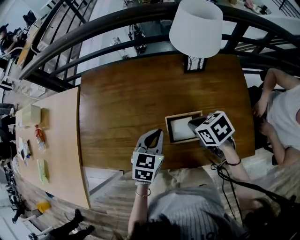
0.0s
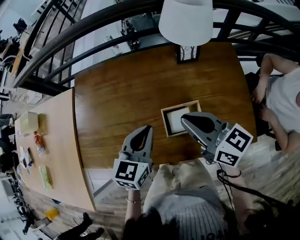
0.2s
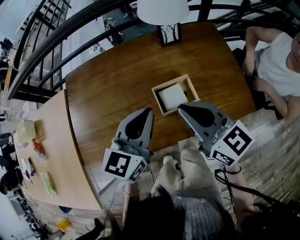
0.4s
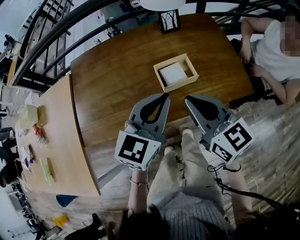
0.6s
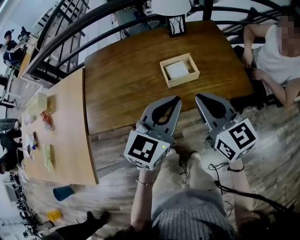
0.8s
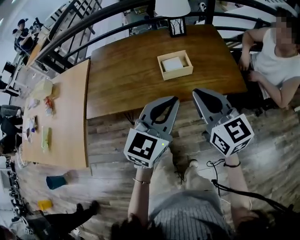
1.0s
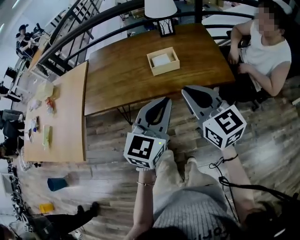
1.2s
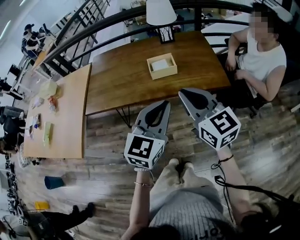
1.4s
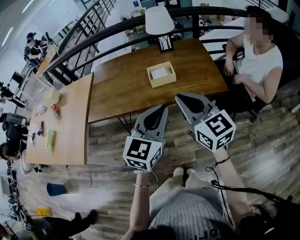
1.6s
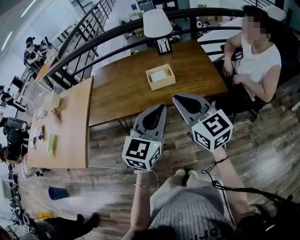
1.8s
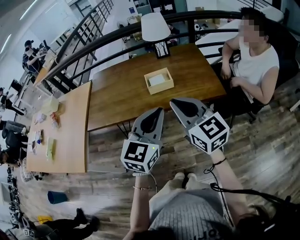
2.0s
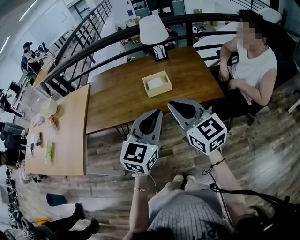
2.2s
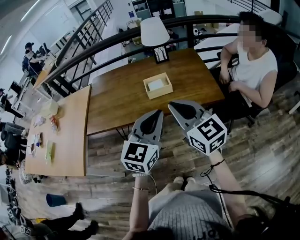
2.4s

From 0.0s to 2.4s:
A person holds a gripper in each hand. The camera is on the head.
From 0.0s to 1.2s: The right gripper moves approximately 40 cm, and points its fingers about 50 degrees further upward; the left gripper shifts by about 40 cm, and rotates some 30 degrees.
From 1.2s to 2.4s: The grippers make only small movements.

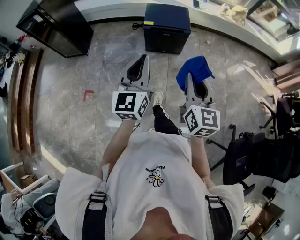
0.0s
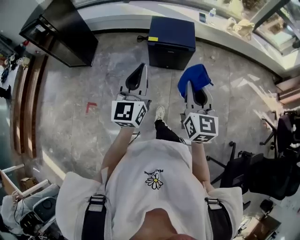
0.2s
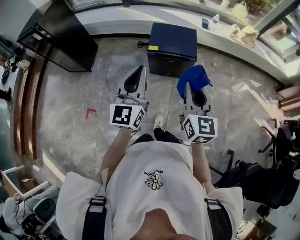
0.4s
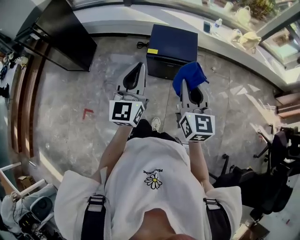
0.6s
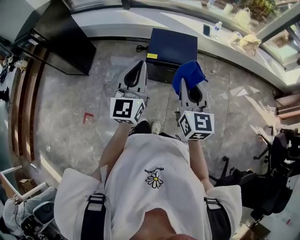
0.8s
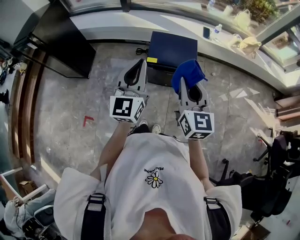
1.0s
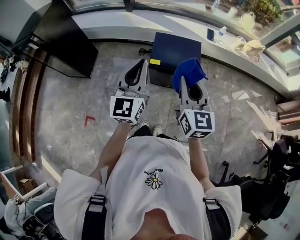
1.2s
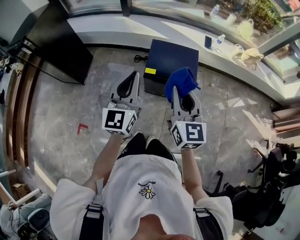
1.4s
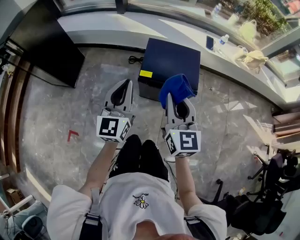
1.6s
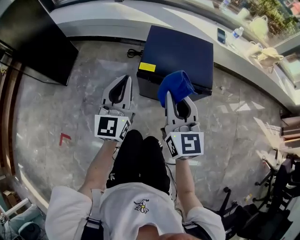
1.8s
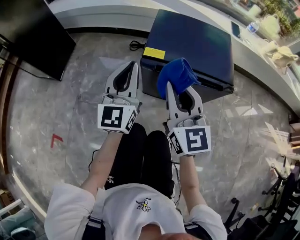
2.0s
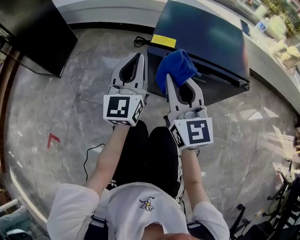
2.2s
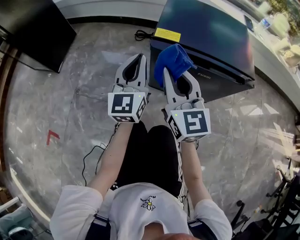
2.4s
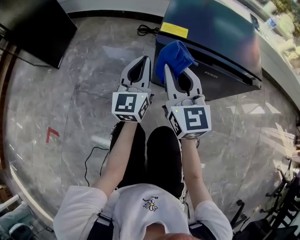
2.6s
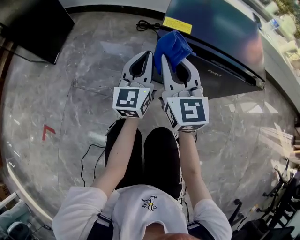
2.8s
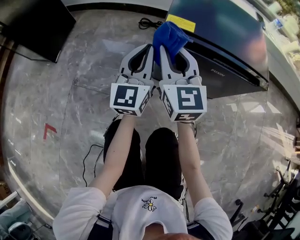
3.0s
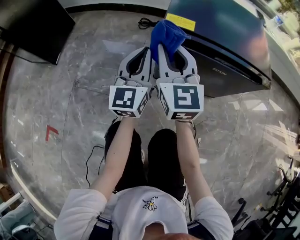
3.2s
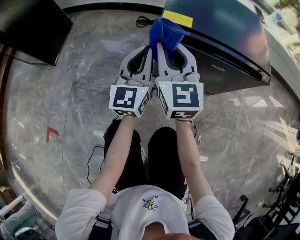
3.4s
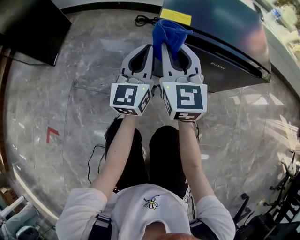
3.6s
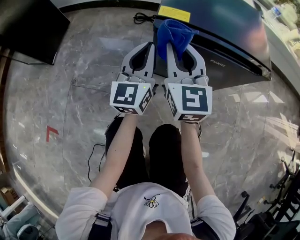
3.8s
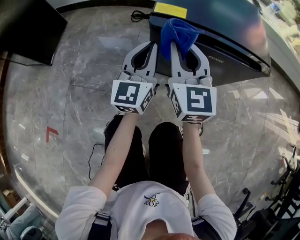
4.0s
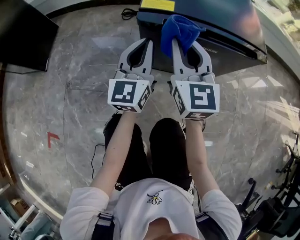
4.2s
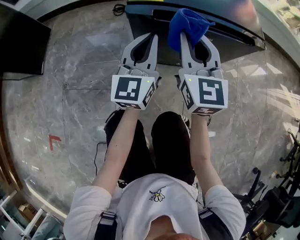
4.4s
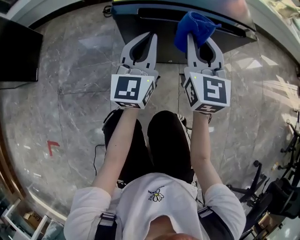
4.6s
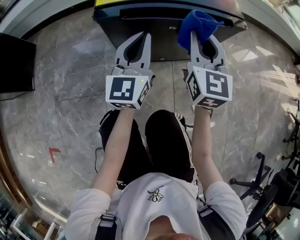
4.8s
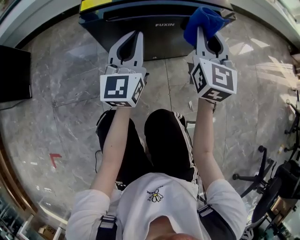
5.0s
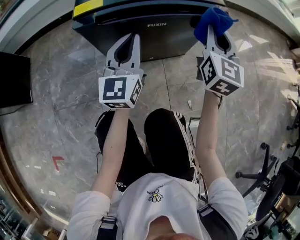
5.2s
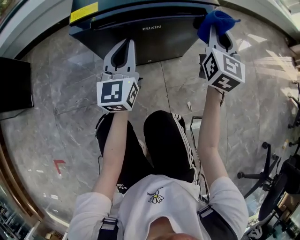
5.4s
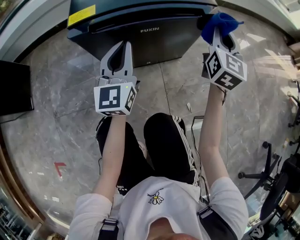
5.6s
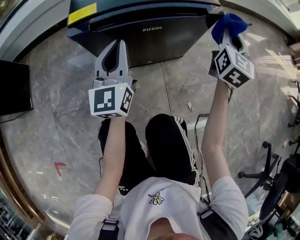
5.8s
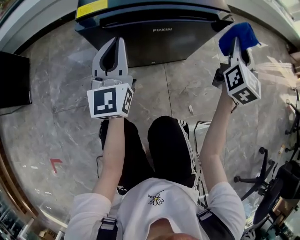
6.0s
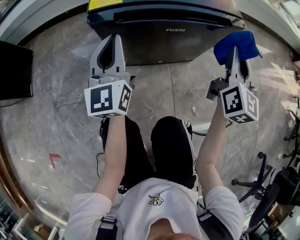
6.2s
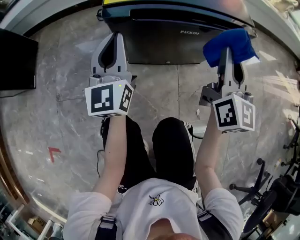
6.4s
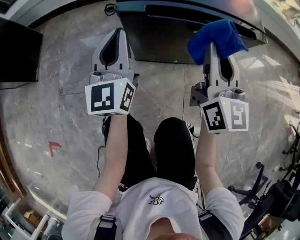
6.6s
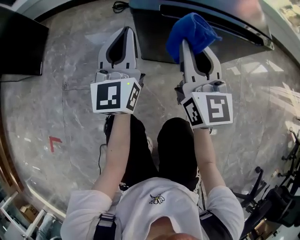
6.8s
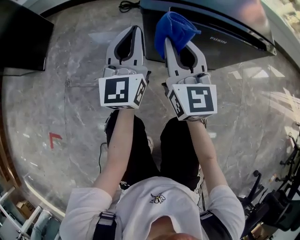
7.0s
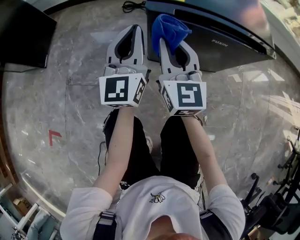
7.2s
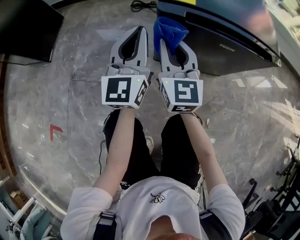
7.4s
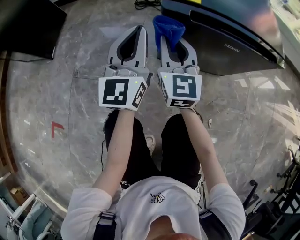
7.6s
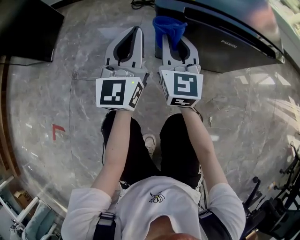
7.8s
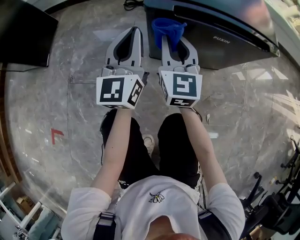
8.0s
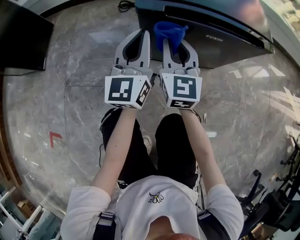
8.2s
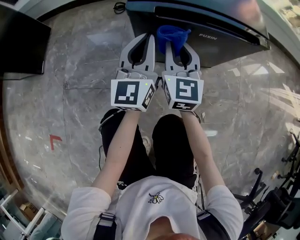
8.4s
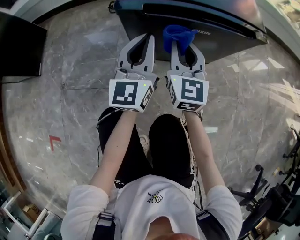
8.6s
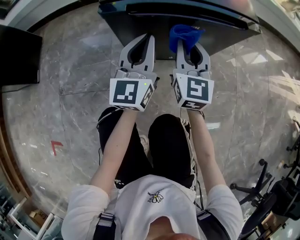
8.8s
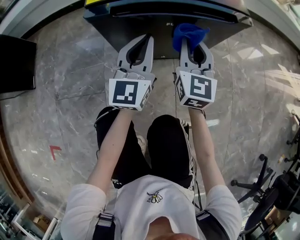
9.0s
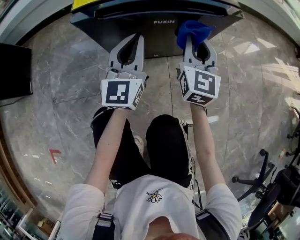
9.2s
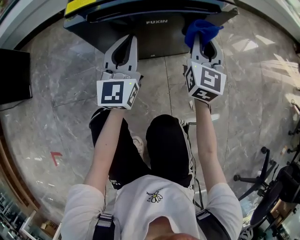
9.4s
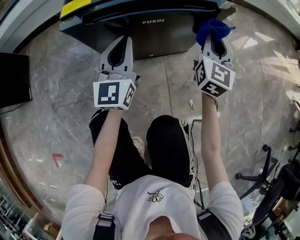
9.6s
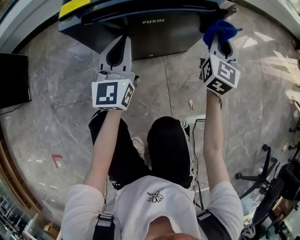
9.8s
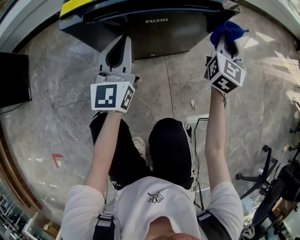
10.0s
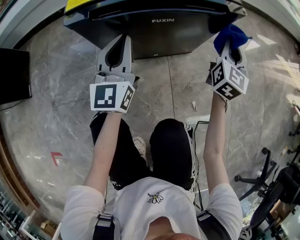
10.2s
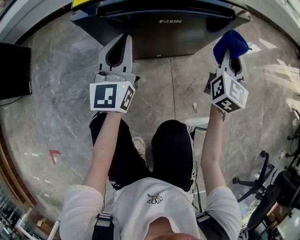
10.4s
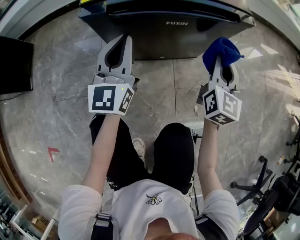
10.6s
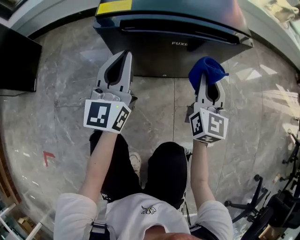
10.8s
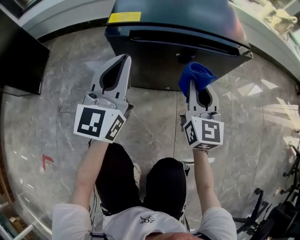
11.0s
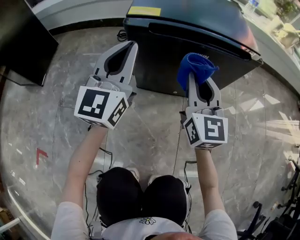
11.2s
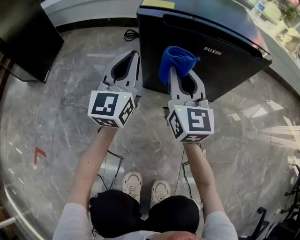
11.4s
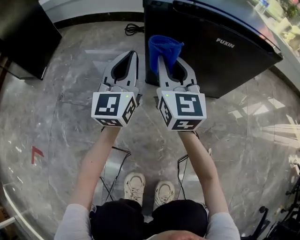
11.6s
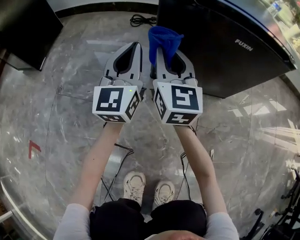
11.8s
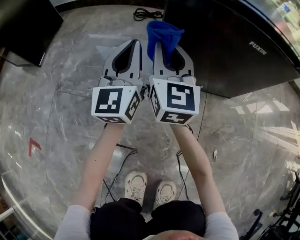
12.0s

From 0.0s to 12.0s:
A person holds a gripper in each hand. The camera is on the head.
From 0.0s to 1.6s: The left gripper heads forward and downward, covering roughly 40 cm. The right gripper shifts roughly 40 cm forward.
From 1.6s to 3.0s: The two grippers go approximately 40 cm downward.
From 3.0s to 4.4s: The two grippers go about 10 cm to the right.
From 4.4s to 6.0s: The right gripper moves to the right, some 30 cm, and swivels about 40 degrees.
From 6.0s to 7.6s: The right gripper shifts by some 40 cm, and rotates about 40 degrees, while the left gripper moves some 15 cm.
From 7.6s to 9.0s: The two grippers go some 20 cm to the right. The right gripper turns by about 20 degrees.
From 9.0s to 10.4s: The right gripper is displaced to the right by about 15 cm, and turns by some 20 degrees.
From 10.4s to 12.0s: The left gripper changes place by approximately 20 cm. Meanwhile the right gripper shifts by about 40 cm, and rotates some 40 degrees.

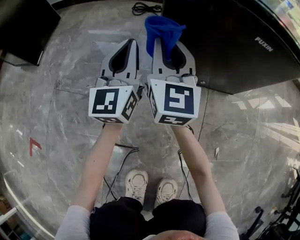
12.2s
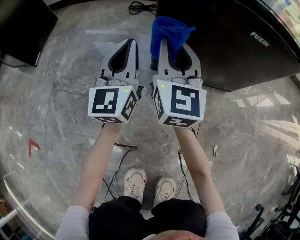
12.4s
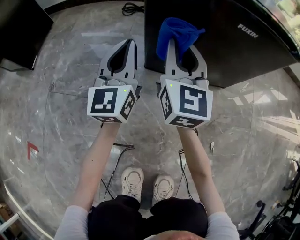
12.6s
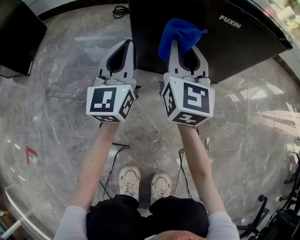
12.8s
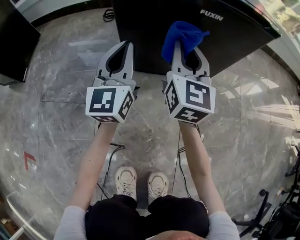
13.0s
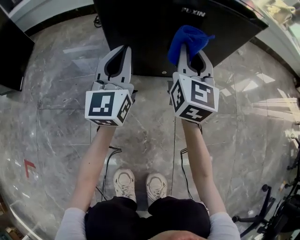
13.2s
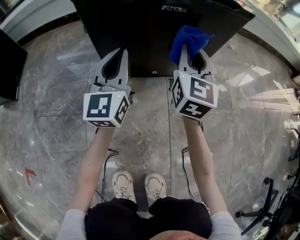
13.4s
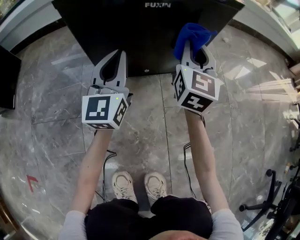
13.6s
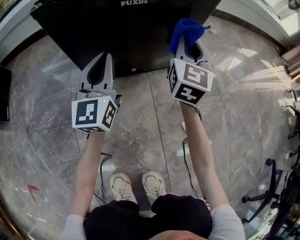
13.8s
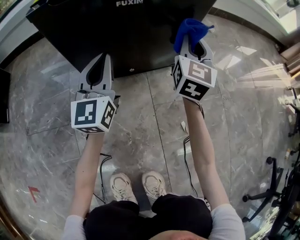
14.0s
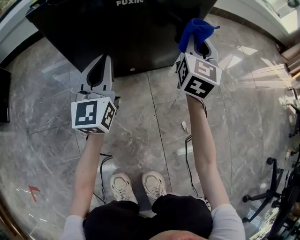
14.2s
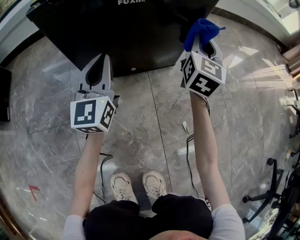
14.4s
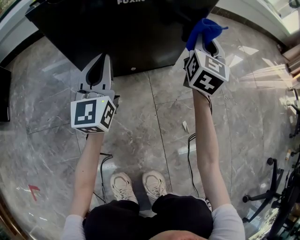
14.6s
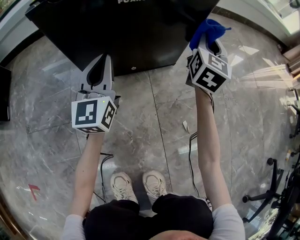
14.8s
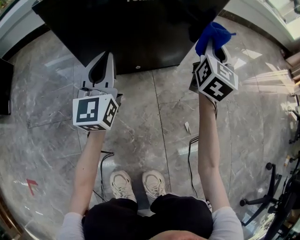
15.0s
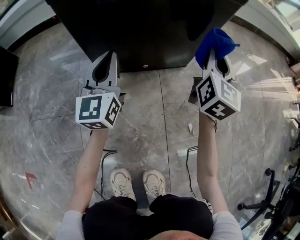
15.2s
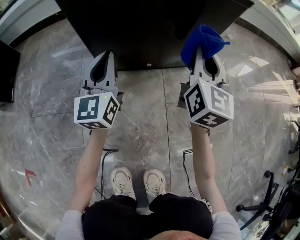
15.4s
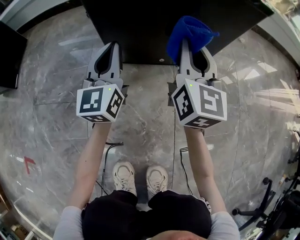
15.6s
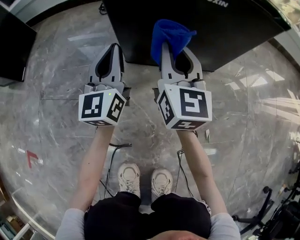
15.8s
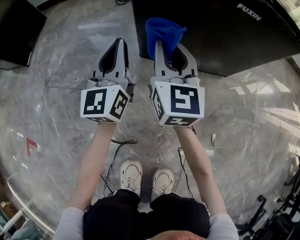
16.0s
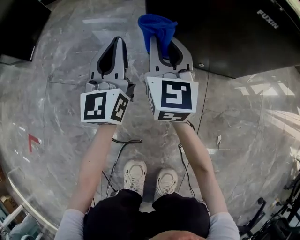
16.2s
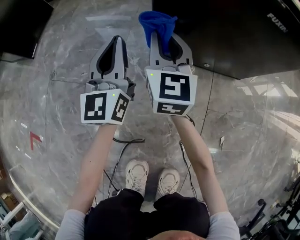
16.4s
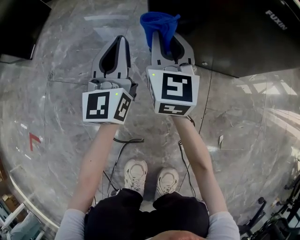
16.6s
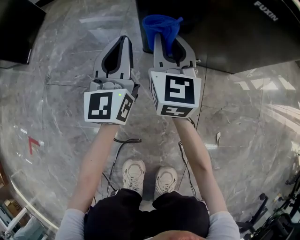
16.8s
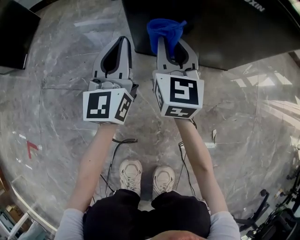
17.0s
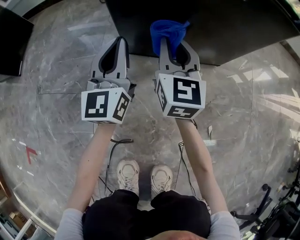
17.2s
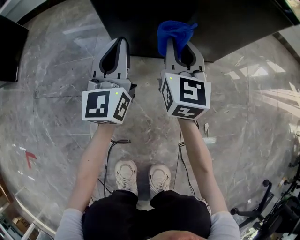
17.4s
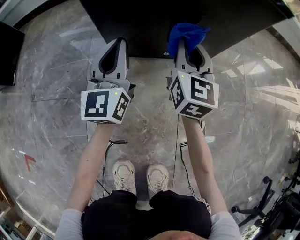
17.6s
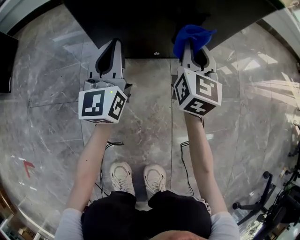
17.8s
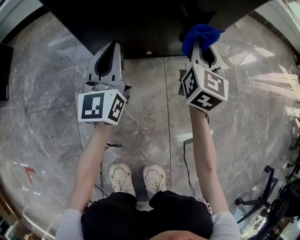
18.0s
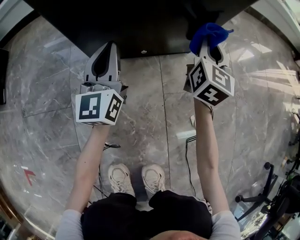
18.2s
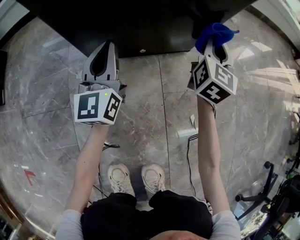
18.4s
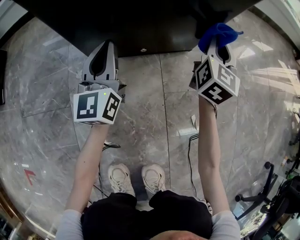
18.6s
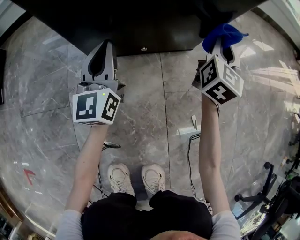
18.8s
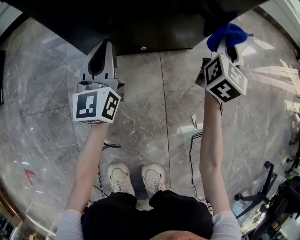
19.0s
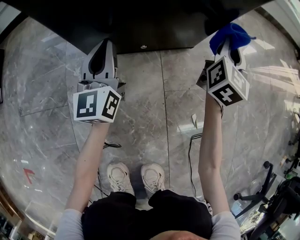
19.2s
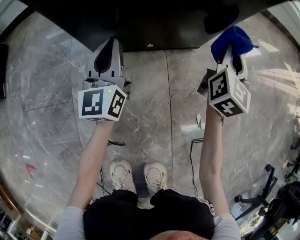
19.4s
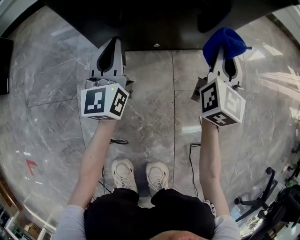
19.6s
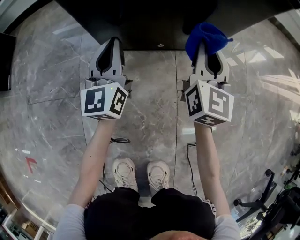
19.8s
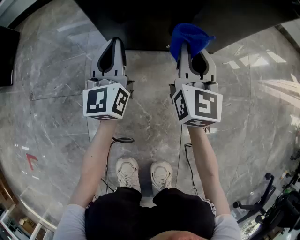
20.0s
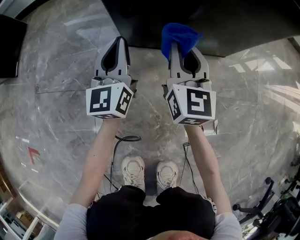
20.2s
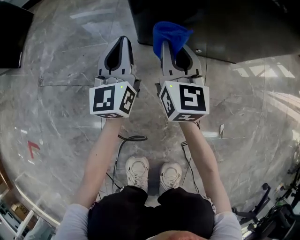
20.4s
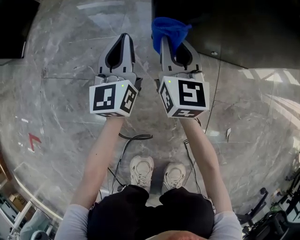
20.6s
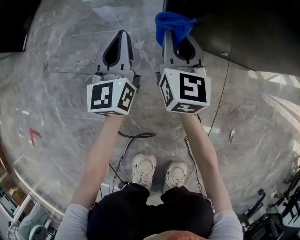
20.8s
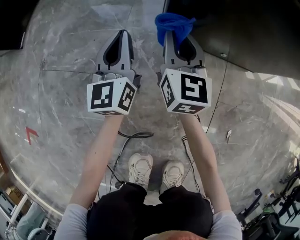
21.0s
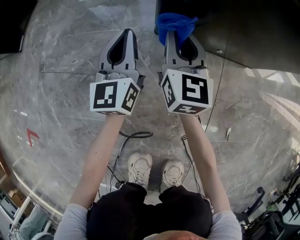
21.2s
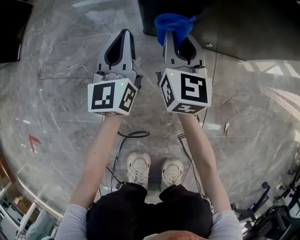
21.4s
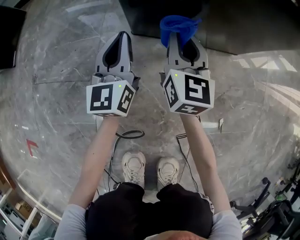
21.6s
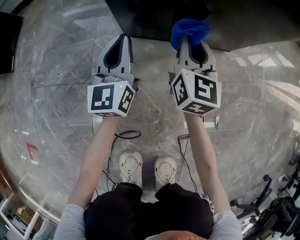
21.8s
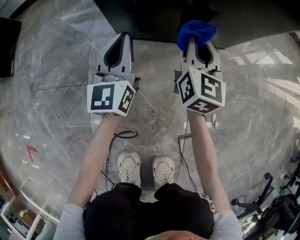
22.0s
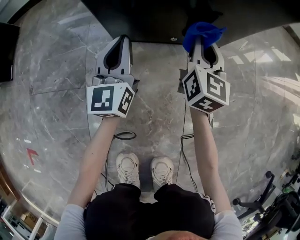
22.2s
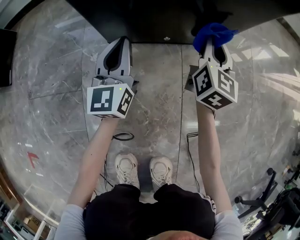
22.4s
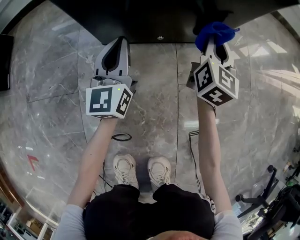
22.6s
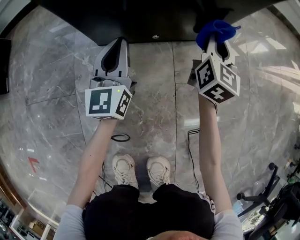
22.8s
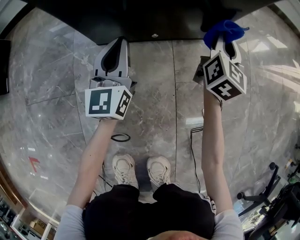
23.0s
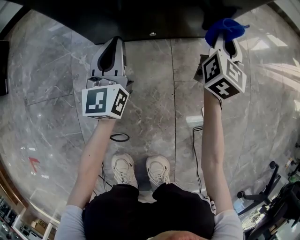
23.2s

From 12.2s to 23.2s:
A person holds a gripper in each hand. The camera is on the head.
From 12.2s to 13.8s: The left gripper shifts by some 20 cm; the right gripper moves roughly 35 cm, and rotates approximately 40 degrees.
From 13.8s to 15.4s: The left gripper shifts by some 5 cm; the right gripper reaches some 5 cm to the right, then returns.
From 15.4s to 17.0s: The left gripper is displaced to the left by about 10 cm. Meanwhile the right gripper travels to the left by approximately 20 cm, and swivels some 20 degrees.
From 17.0s to 18.4s: The right gripper heads to the right, covering approximately 30 cm, and turns by roughly 40 degrees. The left gripper travels to the right by about 10 cm.
From 18.4s to 20.0s: The right gripper goes roughly 20 cm to the left and backward, and turns by roughly 20 degrees. The left gripper moves to the left, approximately 5 cm.
From 20.0s to 21.6s: The left gripper is displaced to the left by roughly 5 cm. The right gripper travels to the left and downward by roughly 10 cm.
From 21.6s to 23.2s: The left gripper goes about 10 cm to the right, while the right gripper travels to the right by roughly 25 cm, and changes its angle by about 30 degrees.
